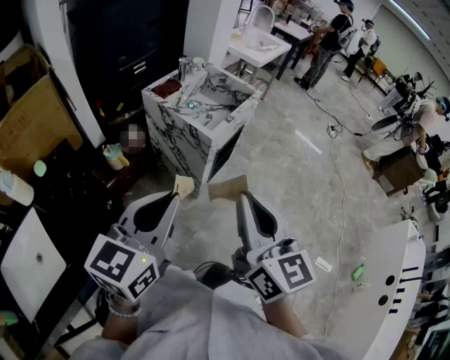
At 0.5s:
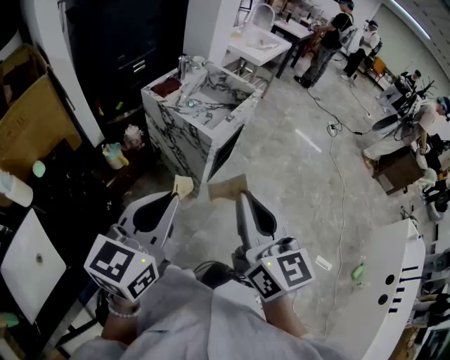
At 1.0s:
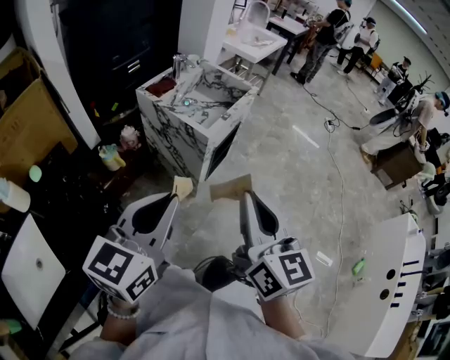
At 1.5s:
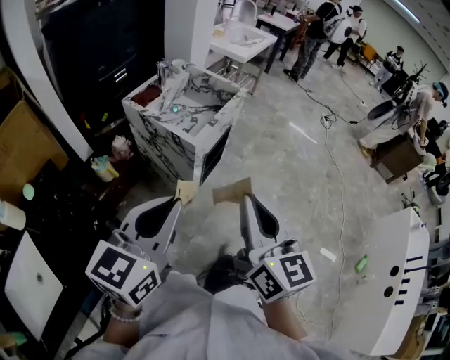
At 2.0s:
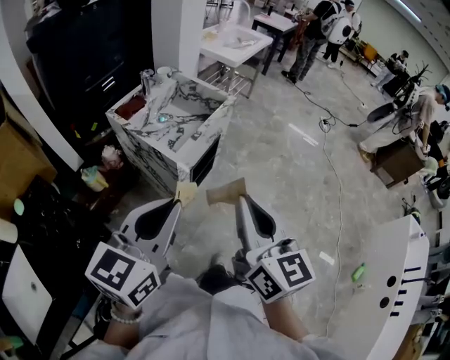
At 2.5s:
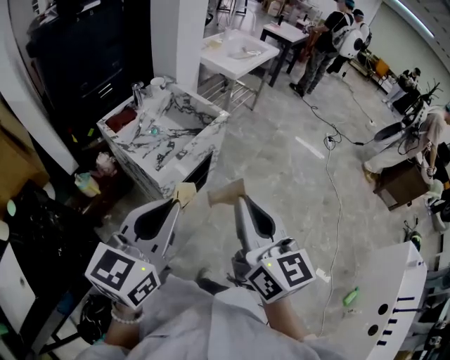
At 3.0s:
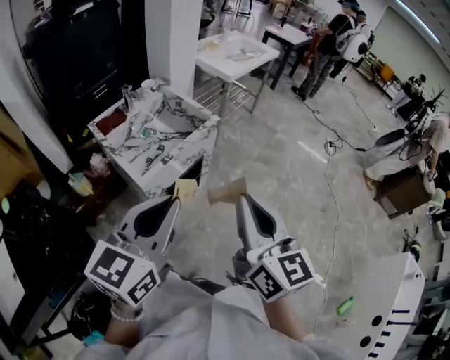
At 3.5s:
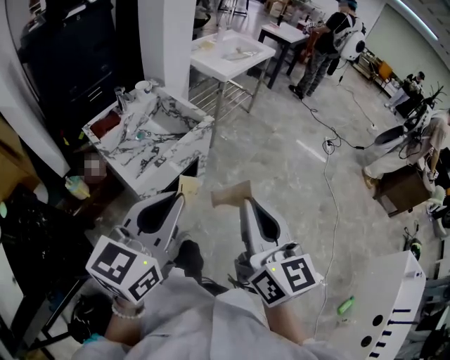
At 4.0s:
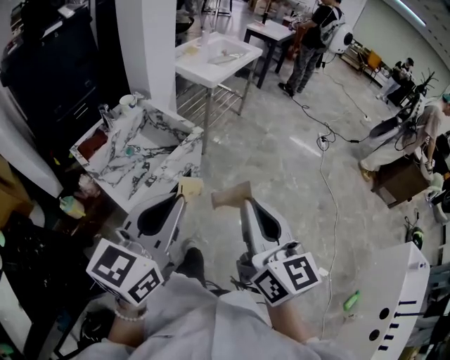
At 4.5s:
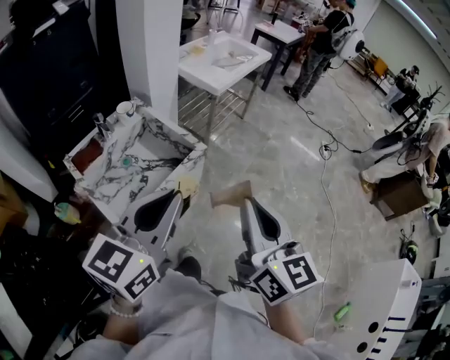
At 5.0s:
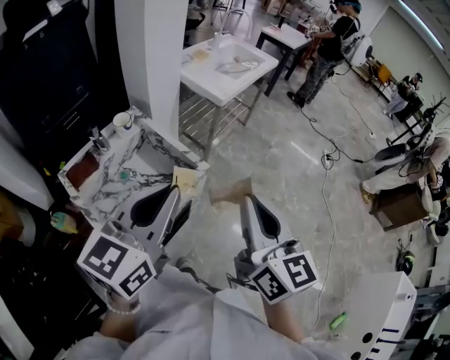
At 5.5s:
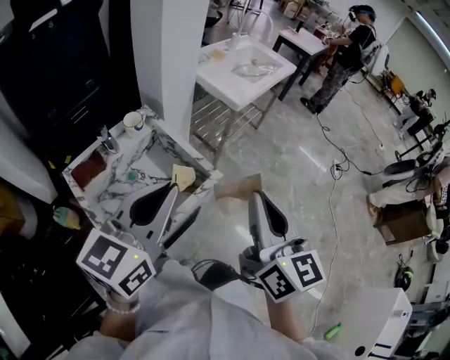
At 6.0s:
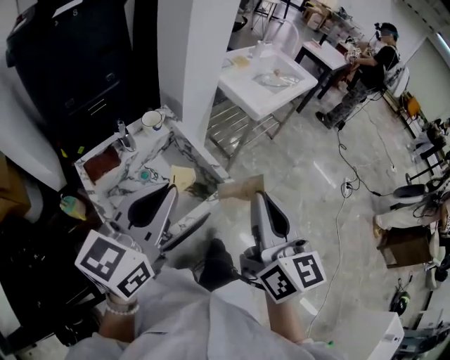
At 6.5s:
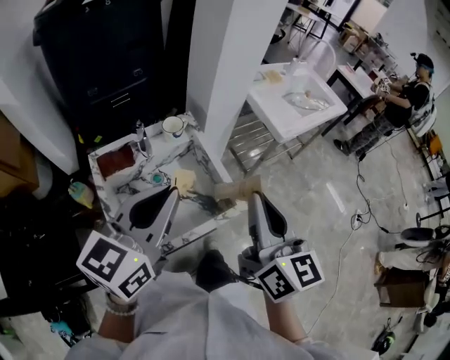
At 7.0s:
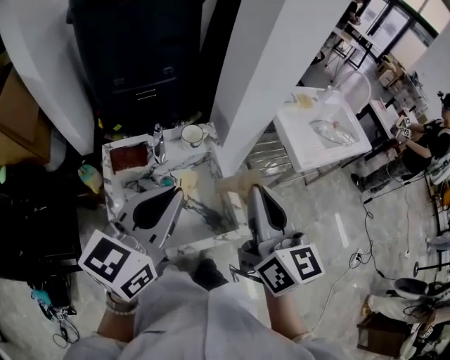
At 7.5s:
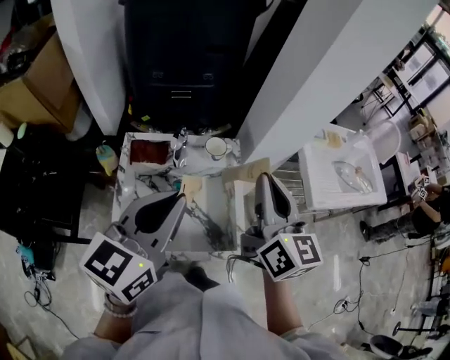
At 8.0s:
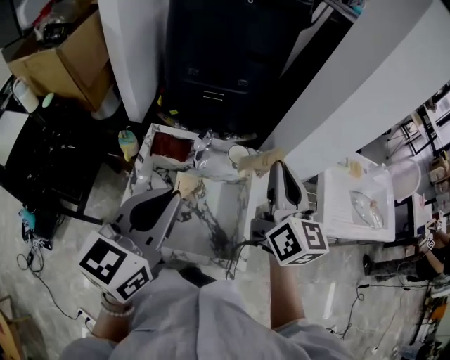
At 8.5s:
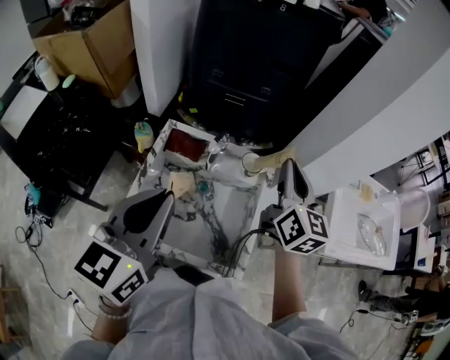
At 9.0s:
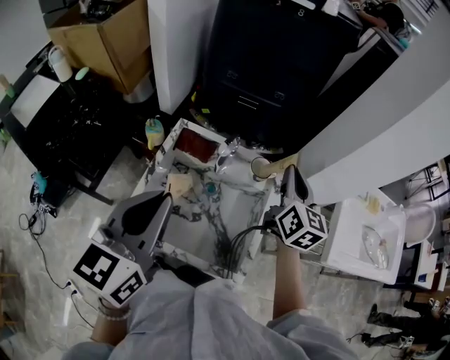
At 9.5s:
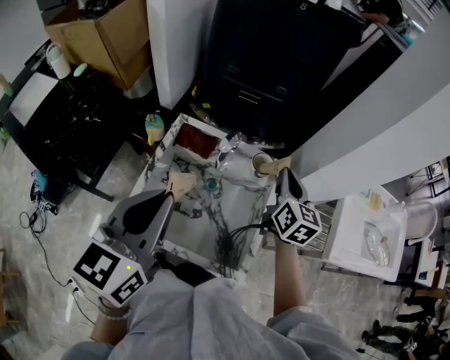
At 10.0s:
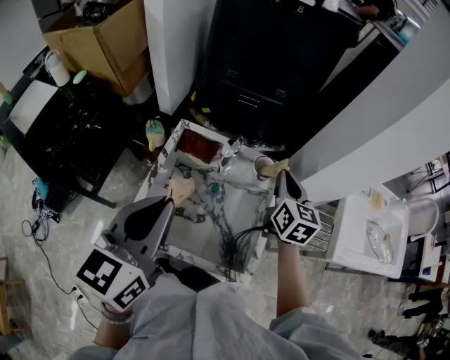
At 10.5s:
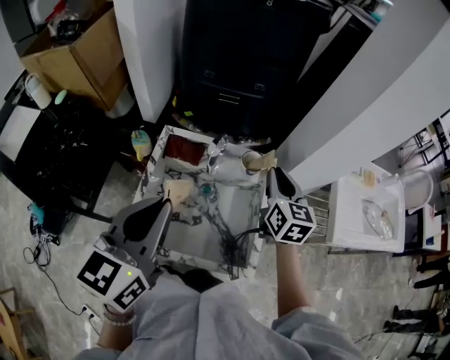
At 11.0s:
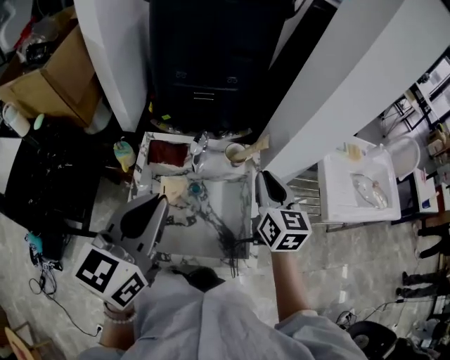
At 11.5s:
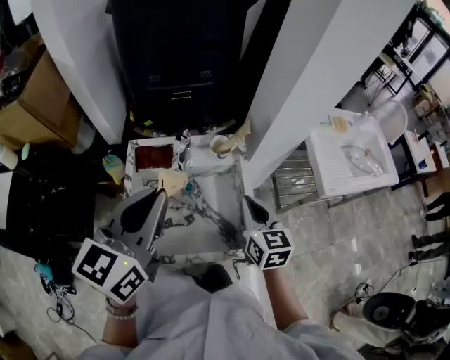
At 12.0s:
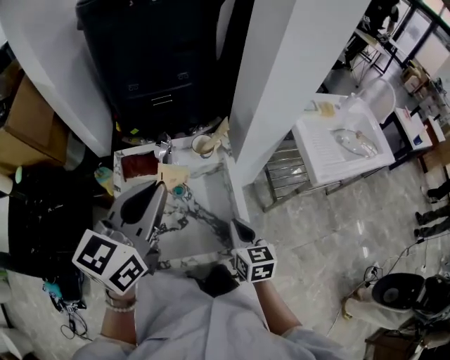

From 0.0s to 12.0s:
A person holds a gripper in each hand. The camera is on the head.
From 0.0s to 2.0s: The grippers both shift forward and to the right by some 15 cm.
From 2.0s to 4.0s: Both grippers travel together forward and to the right, approximately 25 cm.
From 4.0s to 6.0s: The left gripper moves forward and to the left, approximately 30 cm. Meanwhile the right gripper shifts about 30 cm forward.
From 6.0s to 8.0s: The left gripper changes place by roughly 10 cm, and swivels approximately 50 degrees, while the right gripper shifts by about 30 cm, and swivels some 40 degrees.
From 8.0s to 10.0s: The left gripper changes place by about 5 cm. The right gripper goes some 15 cm downward and forward.
From 10.0s to 12.0s: The left gripper heads to the right and forward, covering roughly 10 cm, and rotates approximately 30 degrees. The right gripper heads backward and downward, covering approximately 25 cm.

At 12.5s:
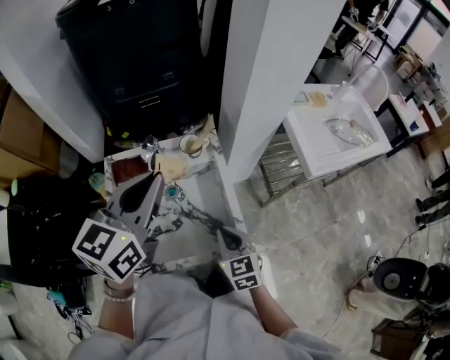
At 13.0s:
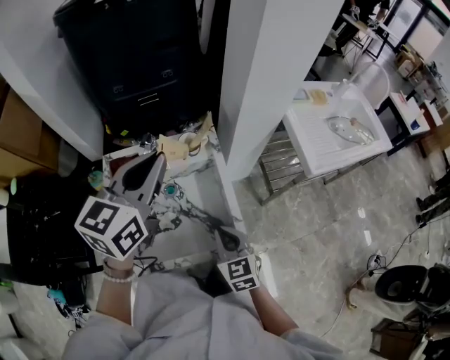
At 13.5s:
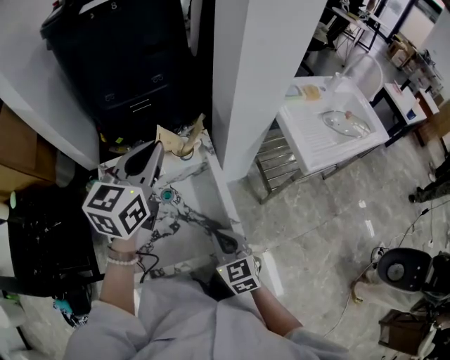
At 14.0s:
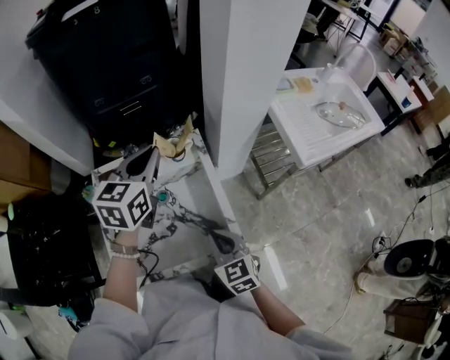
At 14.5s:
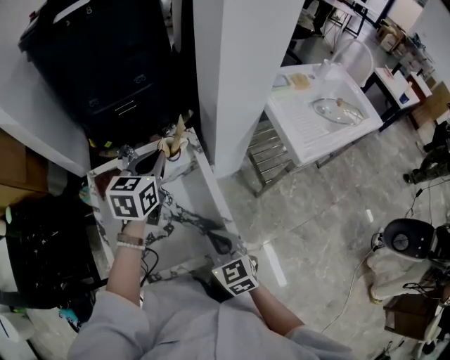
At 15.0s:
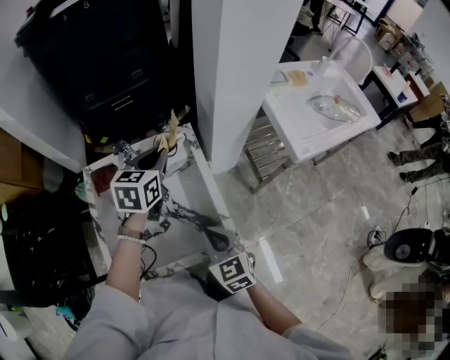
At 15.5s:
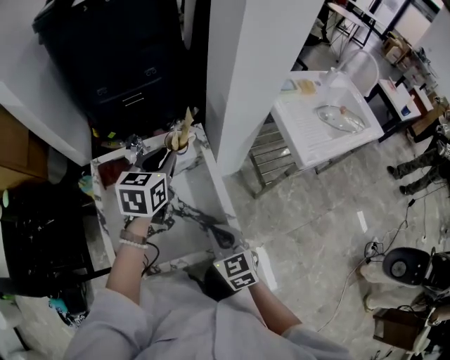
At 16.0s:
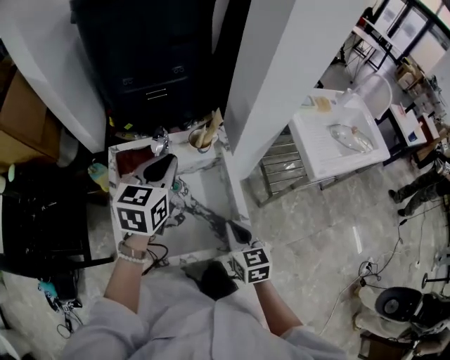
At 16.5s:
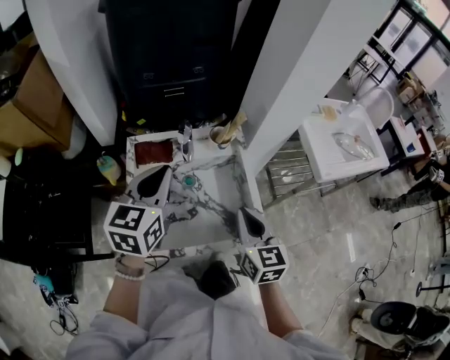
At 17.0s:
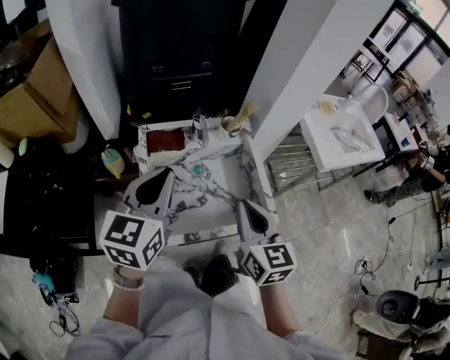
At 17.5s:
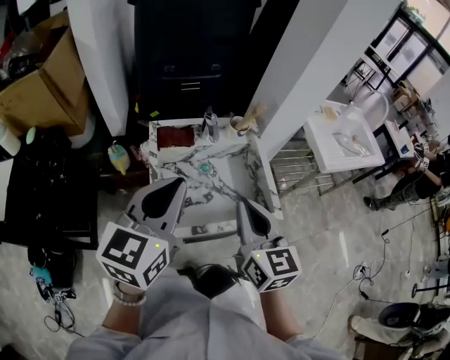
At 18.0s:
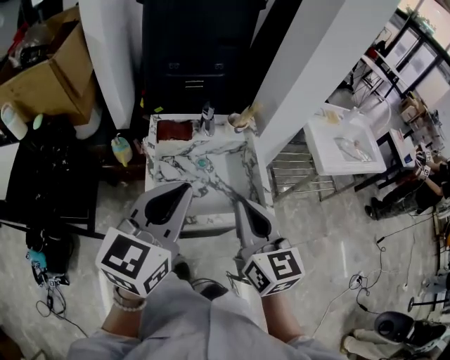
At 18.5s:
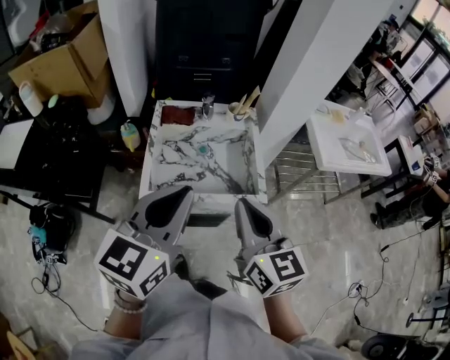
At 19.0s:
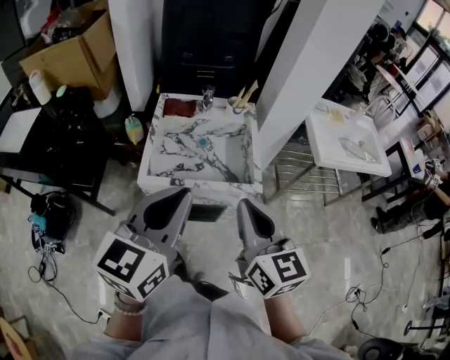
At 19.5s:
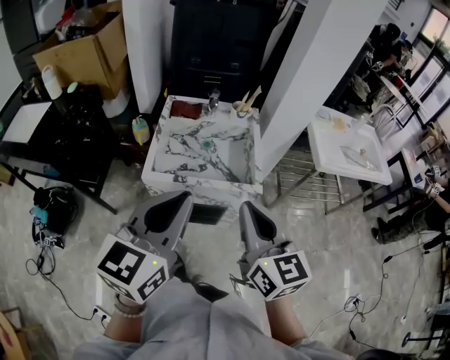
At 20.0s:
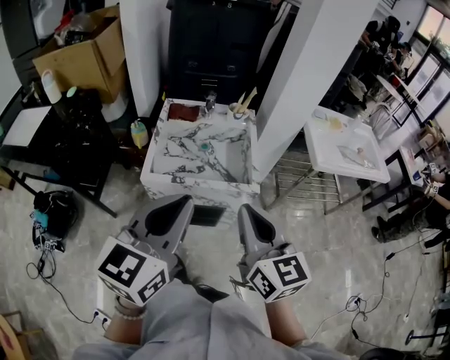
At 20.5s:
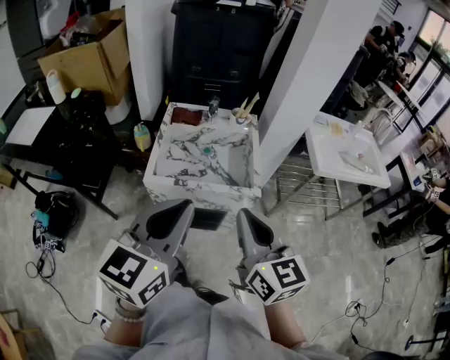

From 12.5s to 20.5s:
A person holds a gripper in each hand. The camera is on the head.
From 12.5s to 14.5s: The left gripper is displaced downward and forward by some 20 cm.
From 14.5s to 16.5s: The left gripper goes approximately 20 cm to the left, backward and upward; the right gripper is displaced upward by approximately 10 cm.
From 16.5s to 18.5s: The left gripper heads backward, covering approximately 25 cm; the right gripper shifts some 20 cm backward and upward.
From 18.5s to 20.5s: The grippers both shift backward by some 10 cm.

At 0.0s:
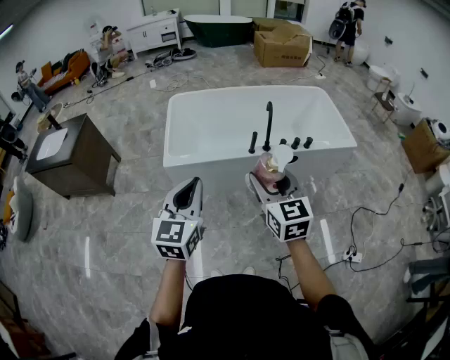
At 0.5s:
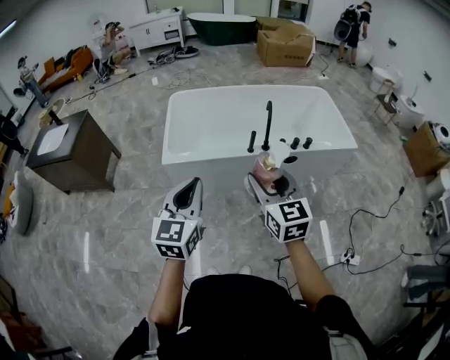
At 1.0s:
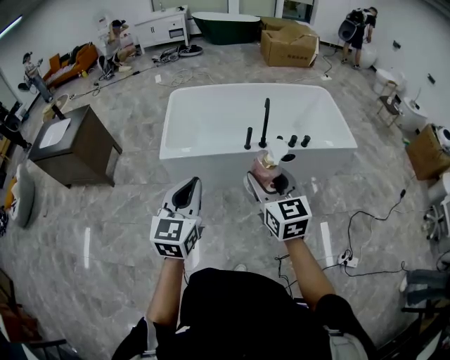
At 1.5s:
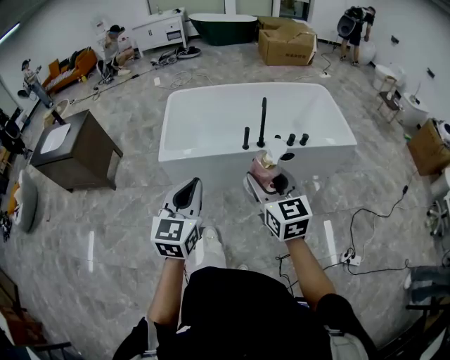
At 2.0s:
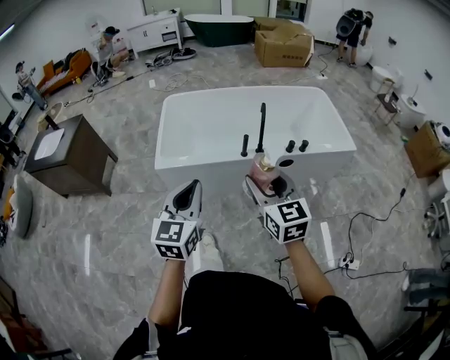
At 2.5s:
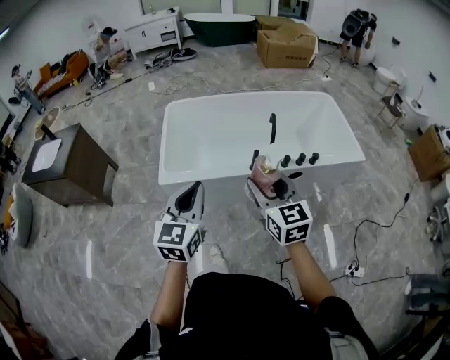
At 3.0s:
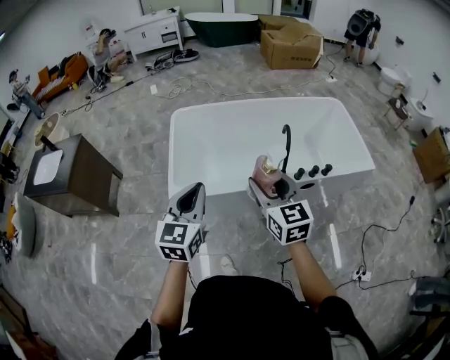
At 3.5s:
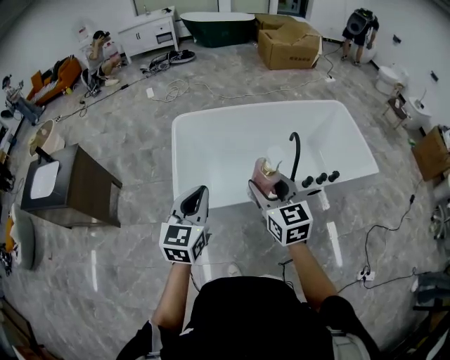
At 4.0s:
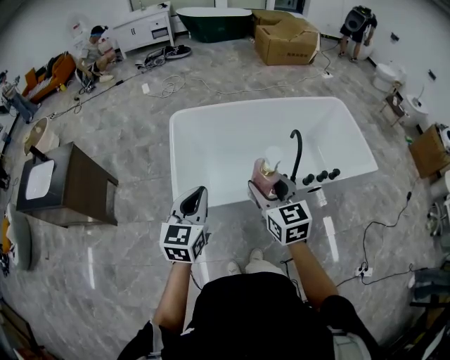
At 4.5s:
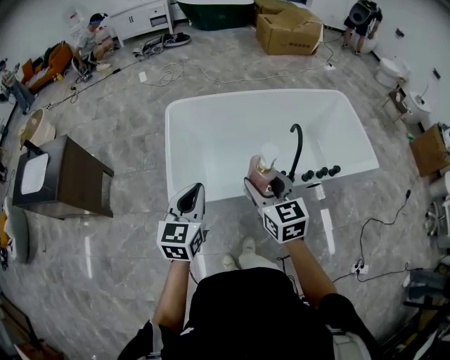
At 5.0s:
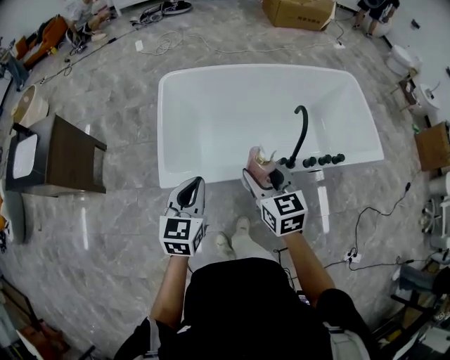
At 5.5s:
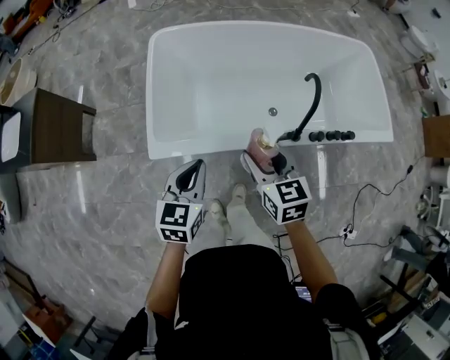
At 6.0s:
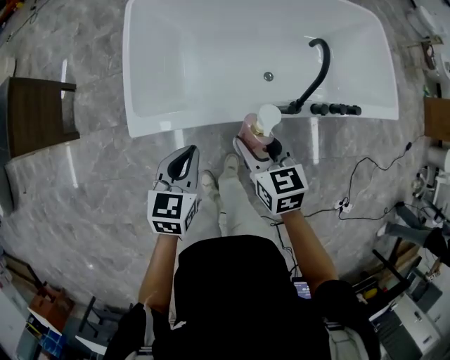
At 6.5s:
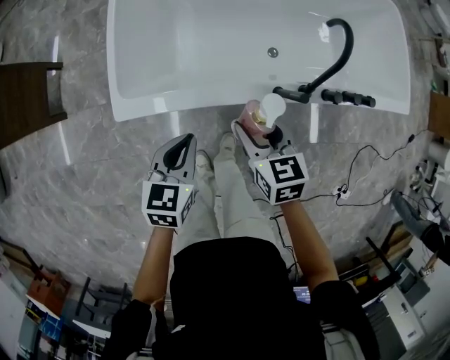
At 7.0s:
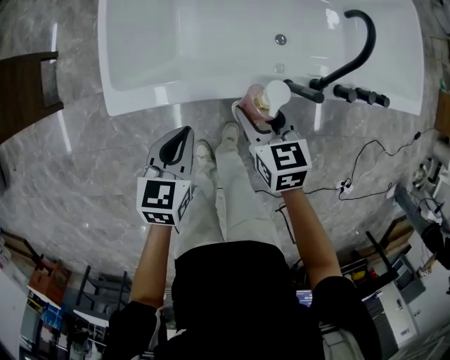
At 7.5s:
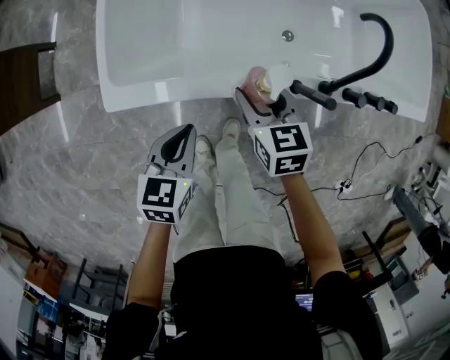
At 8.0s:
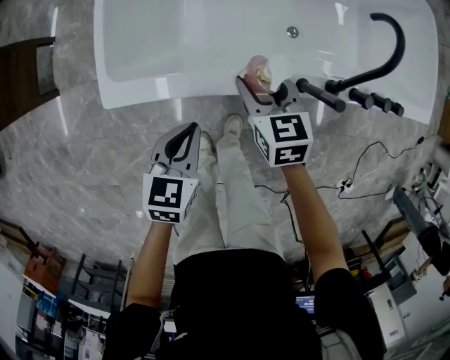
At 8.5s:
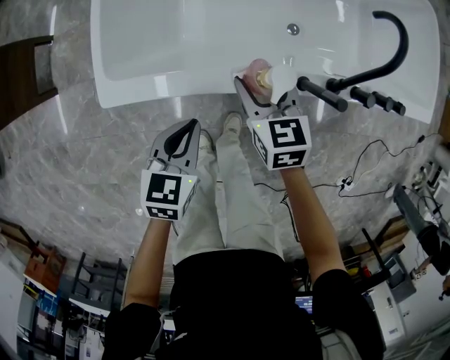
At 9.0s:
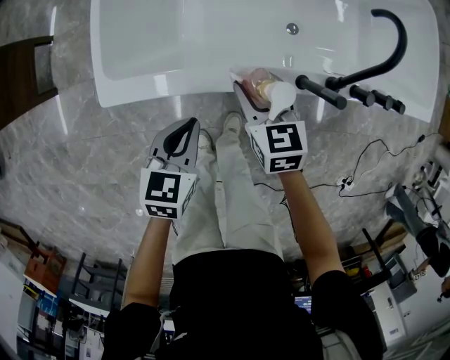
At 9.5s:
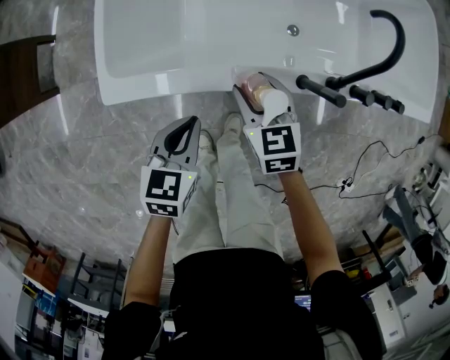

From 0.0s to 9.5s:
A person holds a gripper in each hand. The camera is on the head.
From 0.0s to 2.0s: The two grippers go about 5 cm to the right.
From 2.0s to 4.0s: Both grippers travel together forward and to the left, some 40 cm.
From 4.0s to 5.5s: The grippers both shift downward and forward by roughly 20 cm.
From 5.5s to 7.5s: The two grippers go some 25 cm downward.
From 7.5s to 9.5s: The grippers move only a little.
